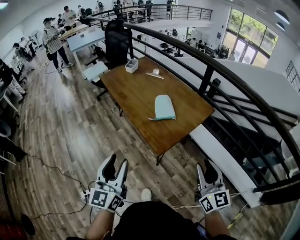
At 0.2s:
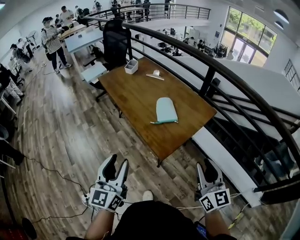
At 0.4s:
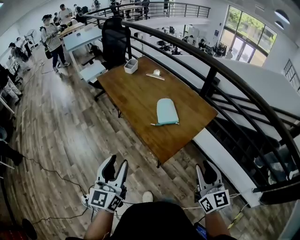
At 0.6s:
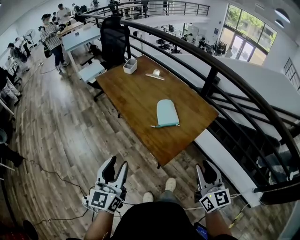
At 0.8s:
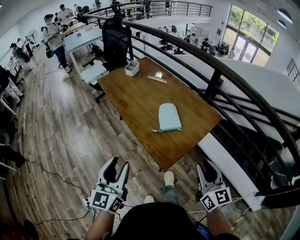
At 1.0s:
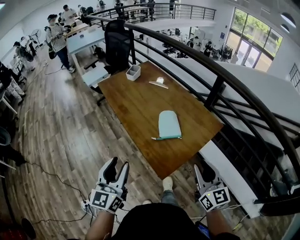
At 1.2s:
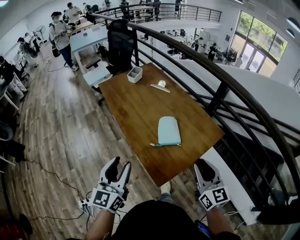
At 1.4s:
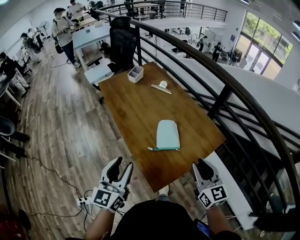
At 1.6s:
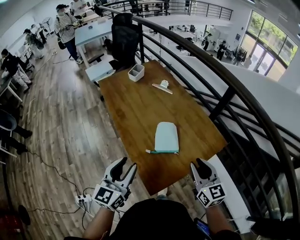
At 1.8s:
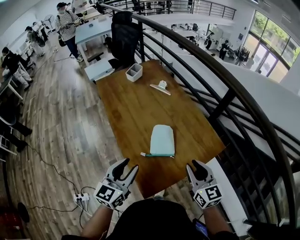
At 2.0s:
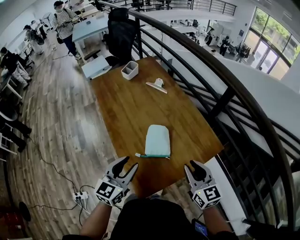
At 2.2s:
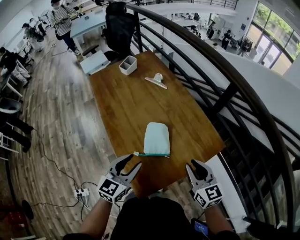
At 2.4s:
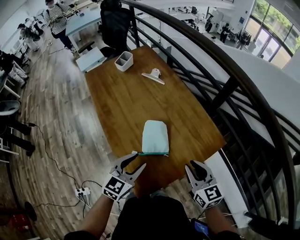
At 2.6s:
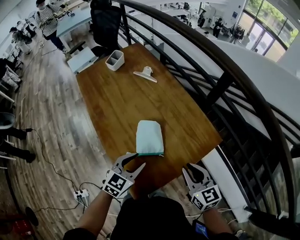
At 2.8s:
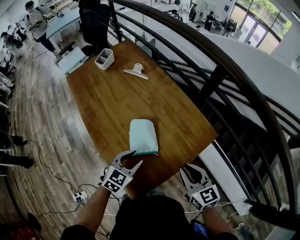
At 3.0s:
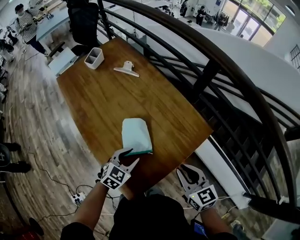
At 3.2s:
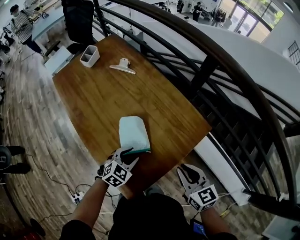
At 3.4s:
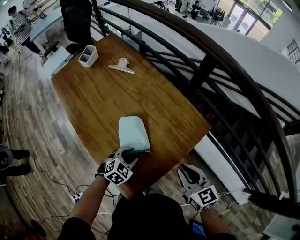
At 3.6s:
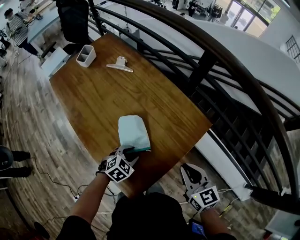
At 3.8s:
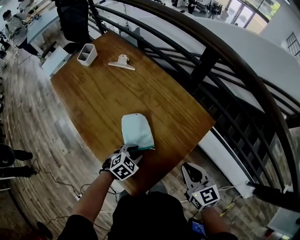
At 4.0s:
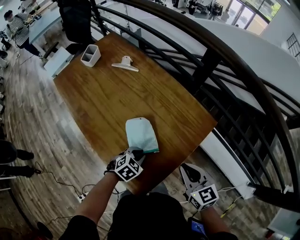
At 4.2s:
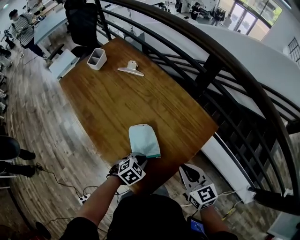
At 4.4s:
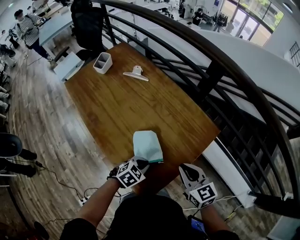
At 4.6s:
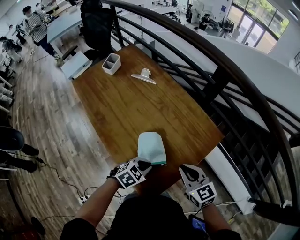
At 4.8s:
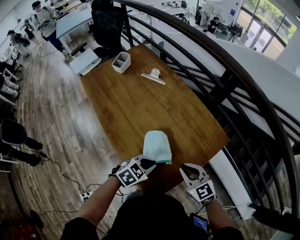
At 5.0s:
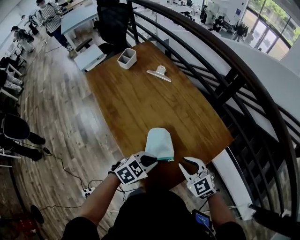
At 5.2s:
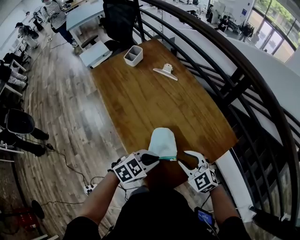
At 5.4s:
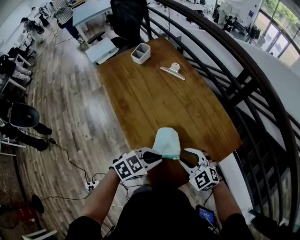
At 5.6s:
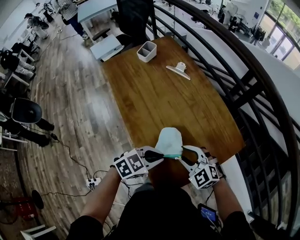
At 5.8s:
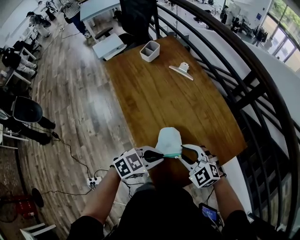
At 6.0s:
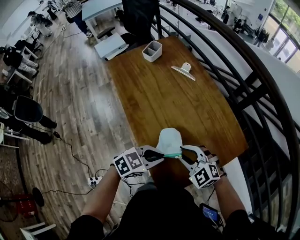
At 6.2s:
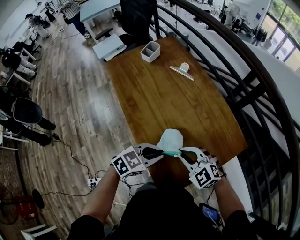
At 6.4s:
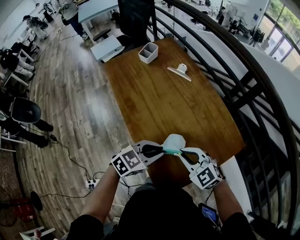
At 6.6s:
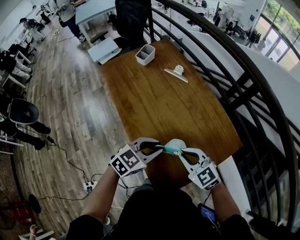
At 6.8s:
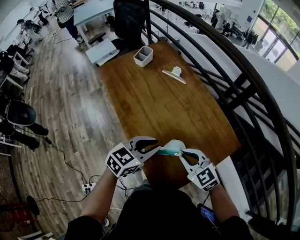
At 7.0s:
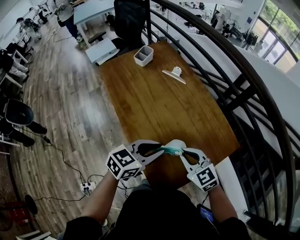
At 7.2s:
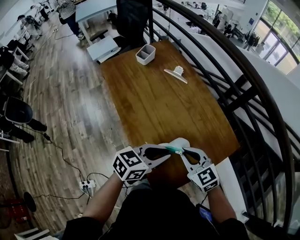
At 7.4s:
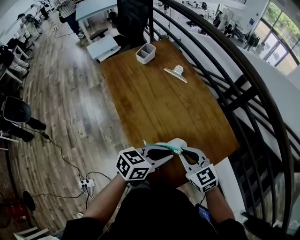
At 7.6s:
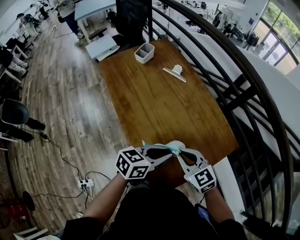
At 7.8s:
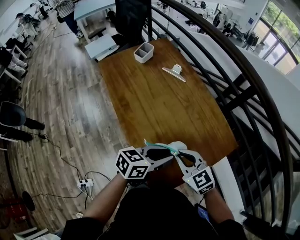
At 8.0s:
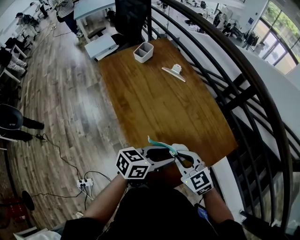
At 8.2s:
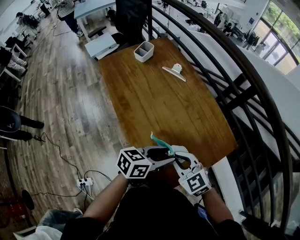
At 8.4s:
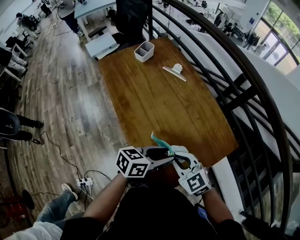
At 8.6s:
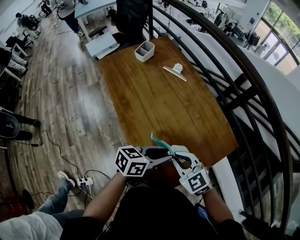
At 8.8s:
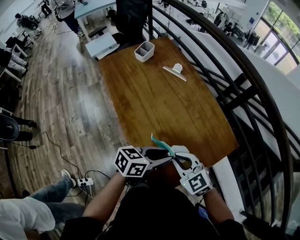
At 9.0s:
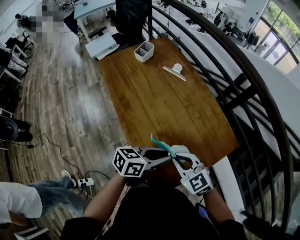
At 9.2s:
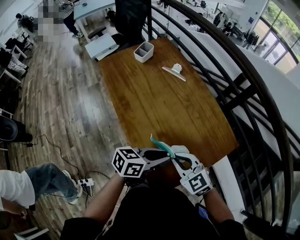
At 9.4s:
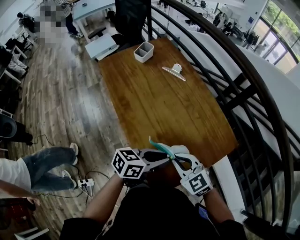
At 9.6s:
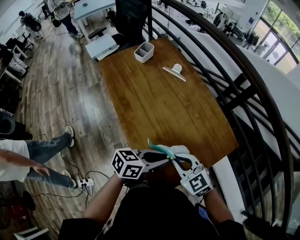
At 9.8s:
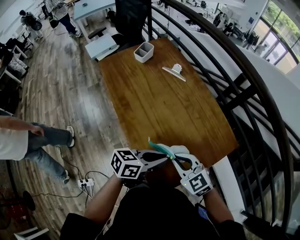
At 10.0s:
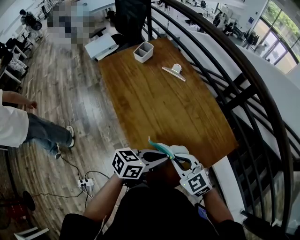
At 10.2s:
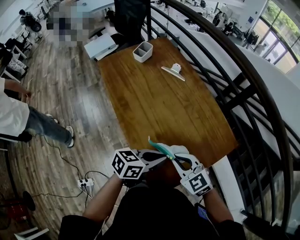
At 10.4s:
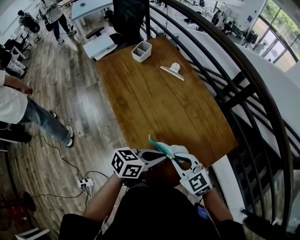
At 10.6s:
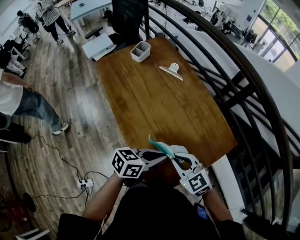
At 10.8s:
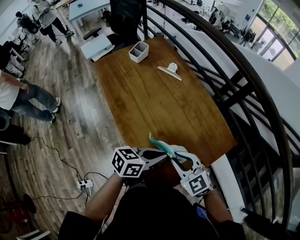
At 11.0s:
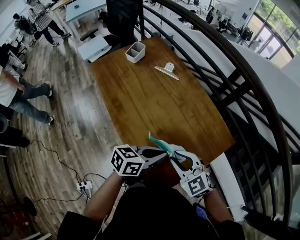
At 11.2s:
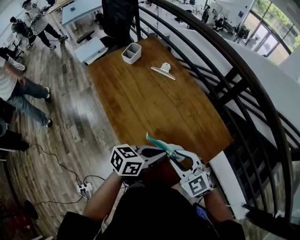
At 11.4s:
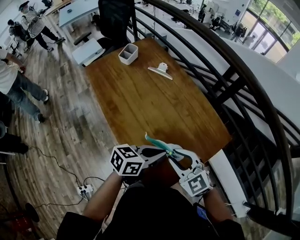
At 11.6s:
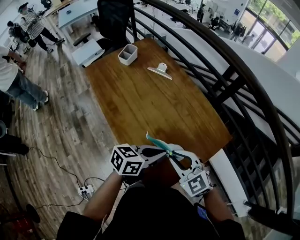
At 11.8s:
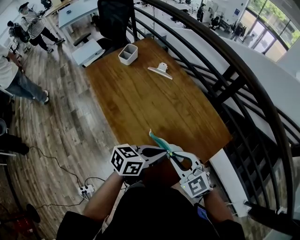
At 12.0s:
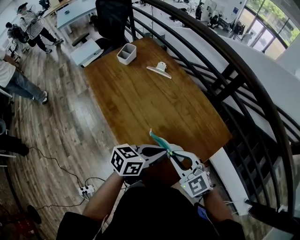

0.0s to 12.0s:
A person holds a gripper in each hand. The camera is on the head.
0.0s to 1.6s: The two grippers go some 25 cm forward.
1.6s to 3.0s: The left gripper travels downward, to the right and forward by some 25 cm, and tips its fingers downward by some 40 degrees. Meanwhile the right gripper goes approximately 10 cm downward and to the right.
3.0s to 4.4s: The left gripper changes place by roughly 5 cm, turns by about 20 degrees, and closes.
4.4s to 6.0s: The left gripper moves upward, some 10 cm, and changes its angle by some 20 degrees; the right gripper changes place by approximately 15 cm, twists some 50 degrees counterclockwise, seen from behind, and opens up.
6.0s to 7.6s: The right gripper turns by approximately 30 degrees, and closes. The left gripper ends up about 5 cm from where it was, and rotates some 30 degrees.
7.6s to 9.0s: The left gripper opens, then closes again.
9.0s to 12.0s: The grippers make only small movements.

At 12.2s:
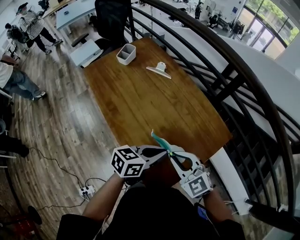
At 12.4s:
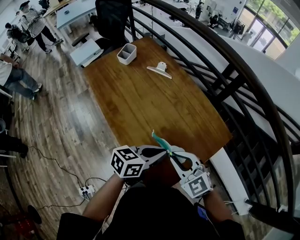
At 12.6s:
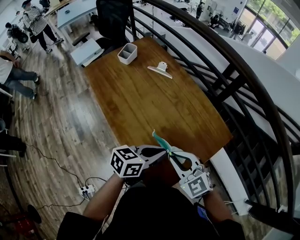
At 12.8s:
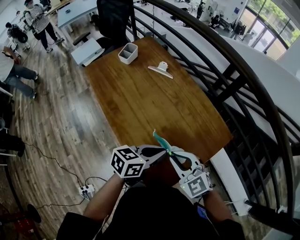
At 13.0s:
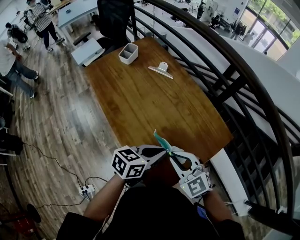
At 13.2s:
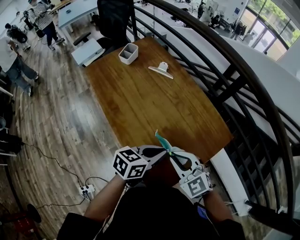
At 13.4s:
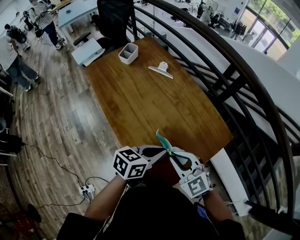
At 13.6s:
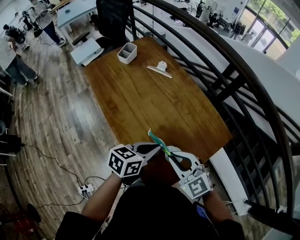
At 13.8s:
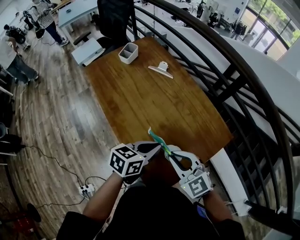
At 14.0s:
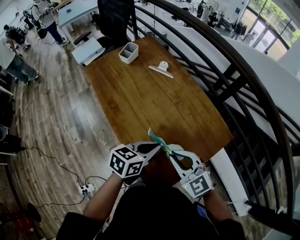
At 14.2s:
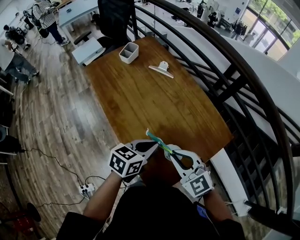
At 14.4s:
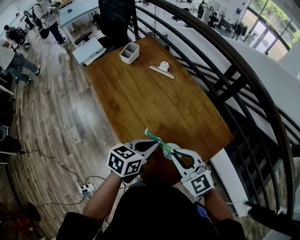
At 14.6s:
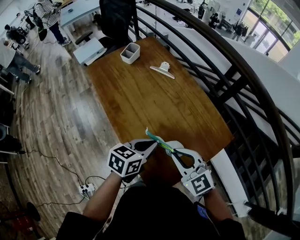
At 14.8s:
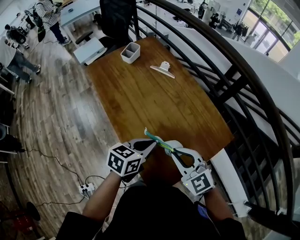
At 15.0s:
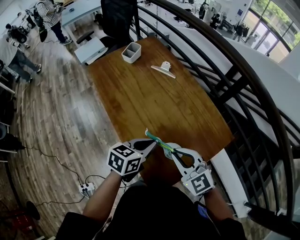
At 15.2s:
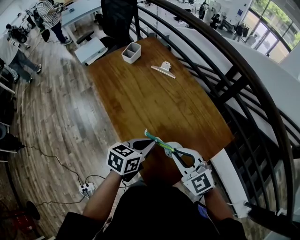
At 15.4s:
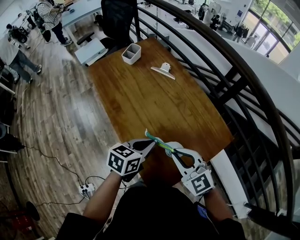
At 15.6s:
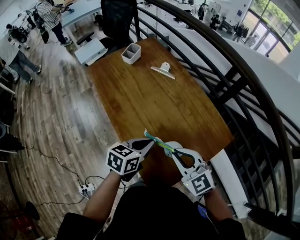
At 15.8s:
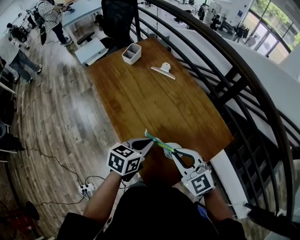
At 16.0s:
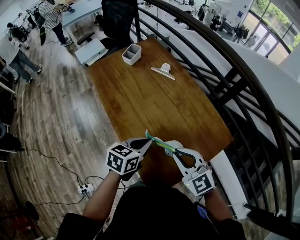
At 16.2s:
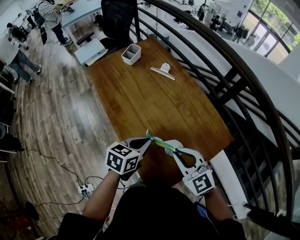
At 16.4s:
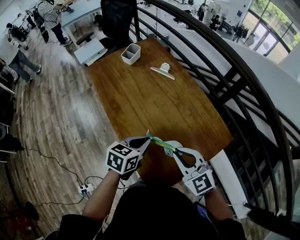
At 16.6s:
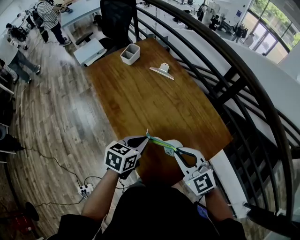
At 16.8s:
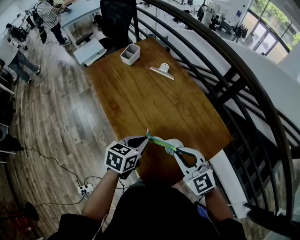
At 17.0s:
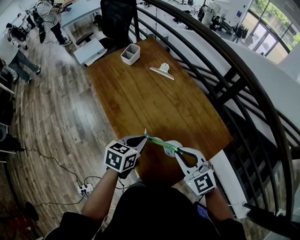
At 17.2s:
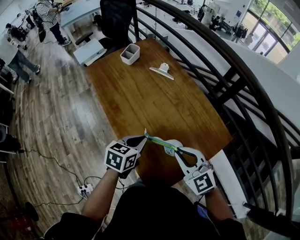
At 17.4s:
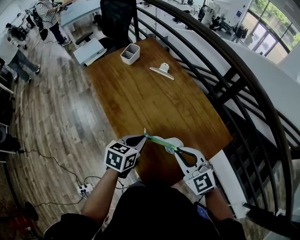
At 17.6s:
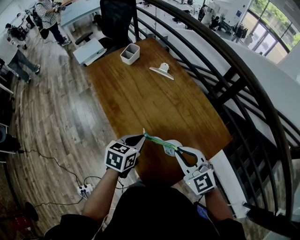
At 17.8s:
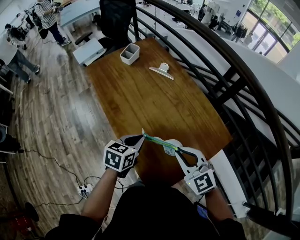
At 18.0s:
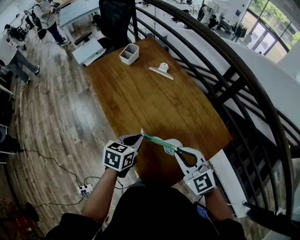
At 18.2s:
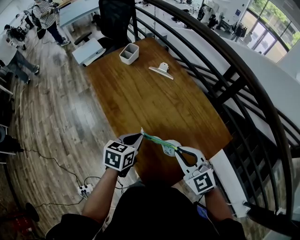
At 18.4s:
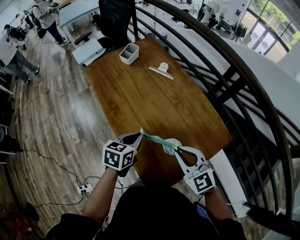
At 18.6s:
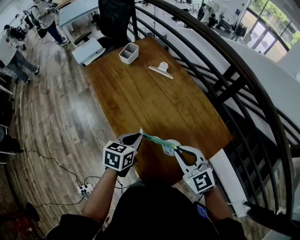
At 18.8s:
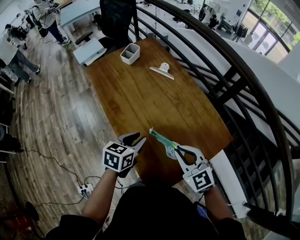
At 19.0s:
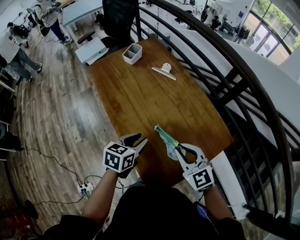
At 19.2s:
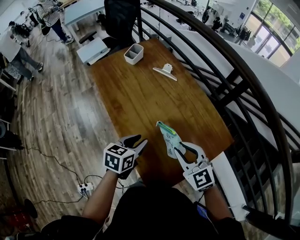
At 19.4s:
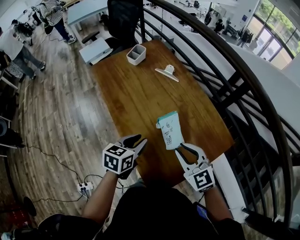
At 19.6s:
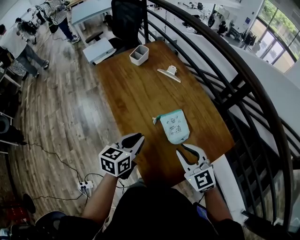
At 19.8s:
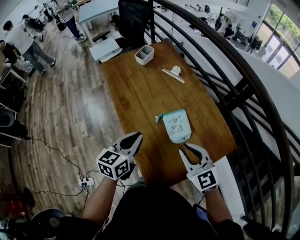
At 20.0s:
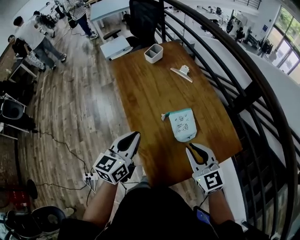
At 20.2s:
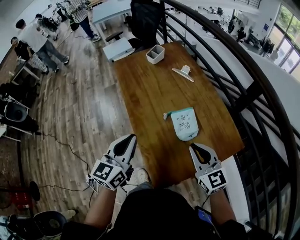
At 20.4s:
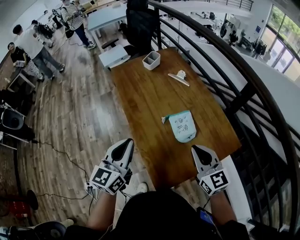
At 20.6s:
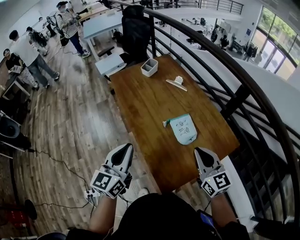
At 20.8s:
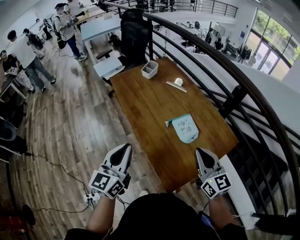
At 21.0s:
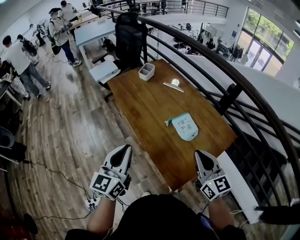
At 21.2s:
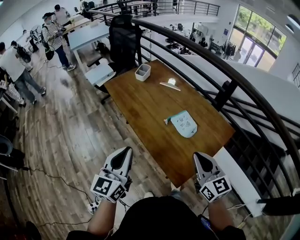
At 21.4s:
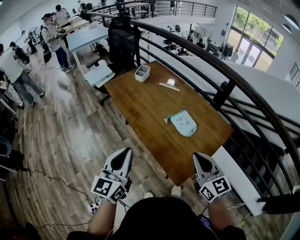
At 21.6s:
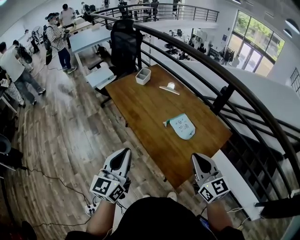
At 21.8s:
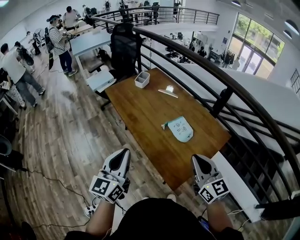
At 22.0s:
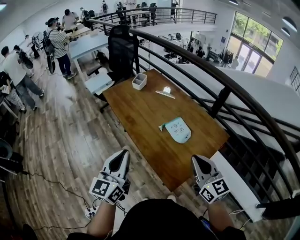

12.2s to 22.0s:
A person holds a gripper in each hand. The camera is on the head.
12.2s to 13.6s: The grippers make only small movements.
13.6s to 16.4s: There are only small adjustments of the grippers.
16.4s to 17.8s: The grippers move only a little.
17.8s to 19.2s: The left gripper opens its fingers.
19.2s to 20.6s: The left gripper travels upward, to the left and backward by about 20 cm, points its fingers about 30 degrees further upward, and closes its fingers; the right gripper rotates approximately 20 degrees, and closes its fingers.
20.6s to 22.0s: The right gripper moves backward, roughly 10 cm. Meanwhile the left gripper is displaced backward by about 10 cm.

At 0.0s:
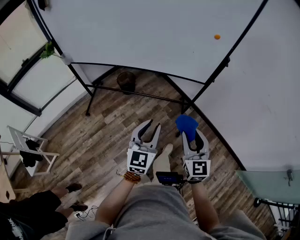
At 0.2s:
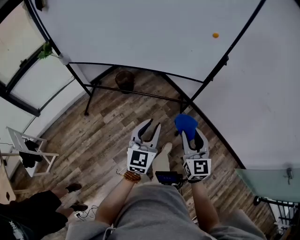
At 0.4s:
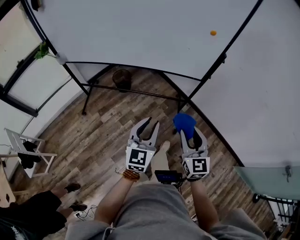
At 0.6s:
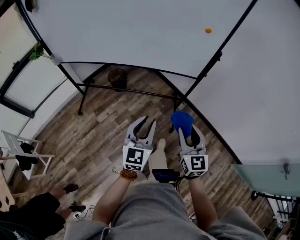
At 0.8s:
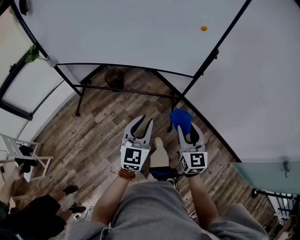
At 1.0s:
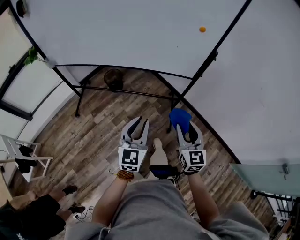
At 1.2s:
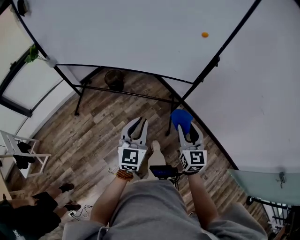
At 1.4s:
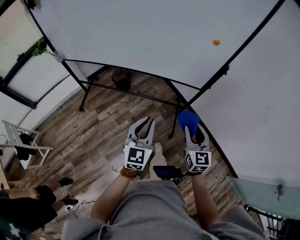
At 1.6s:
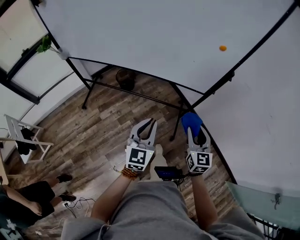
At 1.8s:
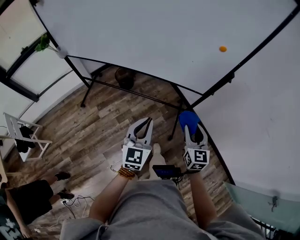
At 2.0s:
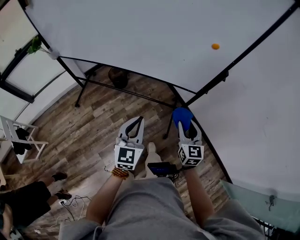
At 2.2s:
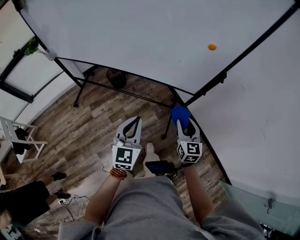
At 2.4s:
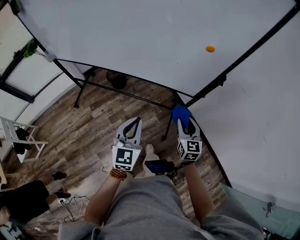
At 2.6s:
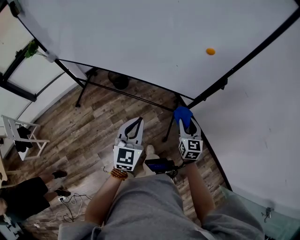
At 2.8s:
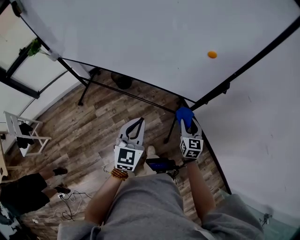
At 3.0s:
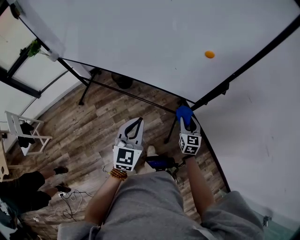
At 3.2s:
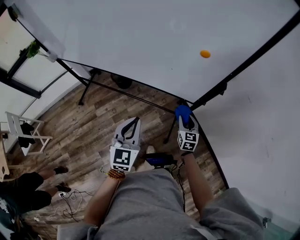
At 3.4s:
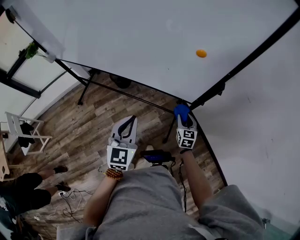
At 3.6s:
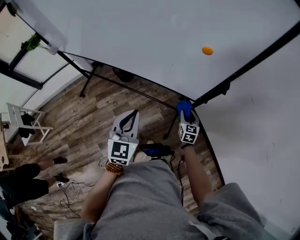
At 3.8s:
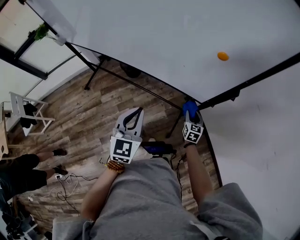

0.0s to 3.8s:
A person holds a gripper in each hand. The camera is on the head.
0.0s to 1.2s: The right gripper moves forward and to the right, some 10 cm. The left gripper moves forward, roughly 5 cm.
1.2s to 2.6s: The right gripper heads forward, downward and to the right, covering approximately 25 cm. Meanwhile the left gripper goes about 15 cm forward and to the right.
2.6s to 3.8s: The right gripper moves downward and forward, about 20 cm.
